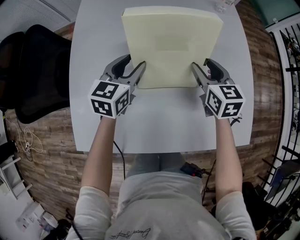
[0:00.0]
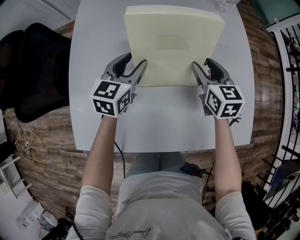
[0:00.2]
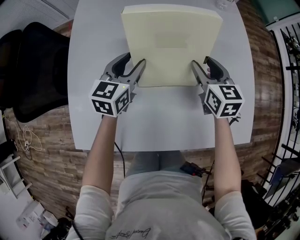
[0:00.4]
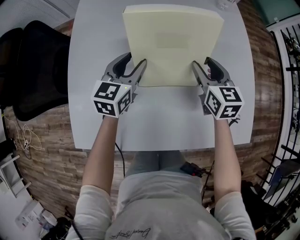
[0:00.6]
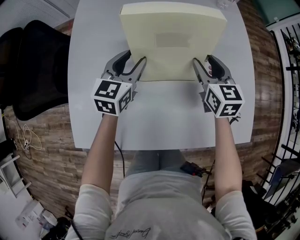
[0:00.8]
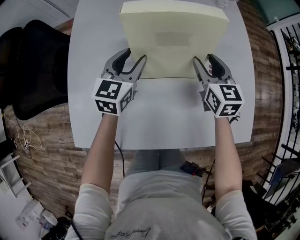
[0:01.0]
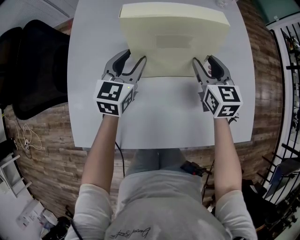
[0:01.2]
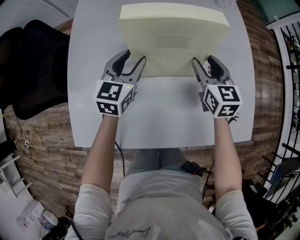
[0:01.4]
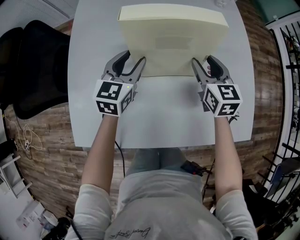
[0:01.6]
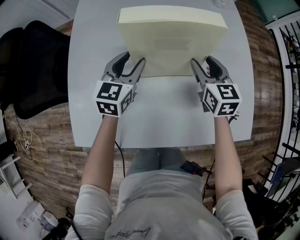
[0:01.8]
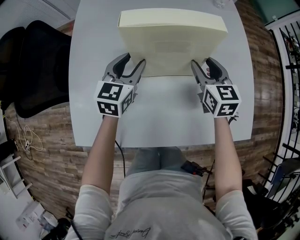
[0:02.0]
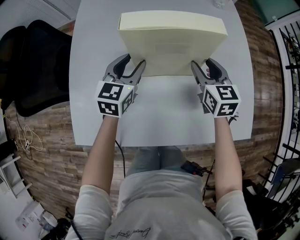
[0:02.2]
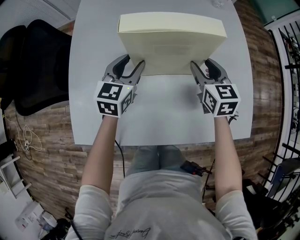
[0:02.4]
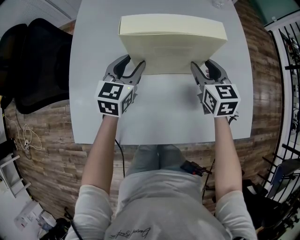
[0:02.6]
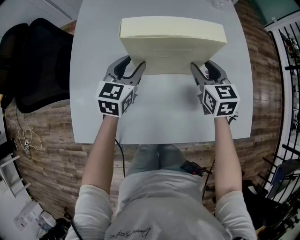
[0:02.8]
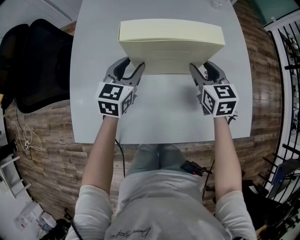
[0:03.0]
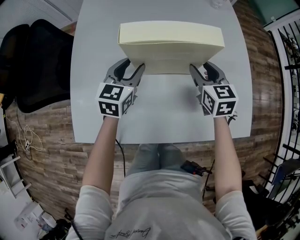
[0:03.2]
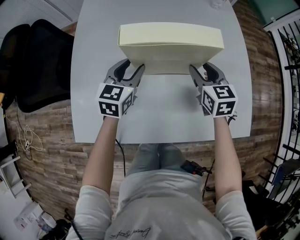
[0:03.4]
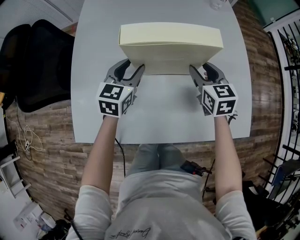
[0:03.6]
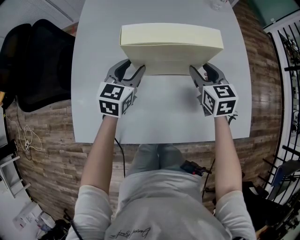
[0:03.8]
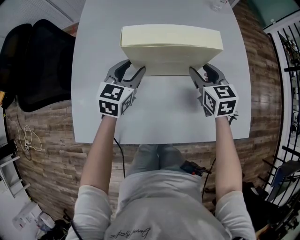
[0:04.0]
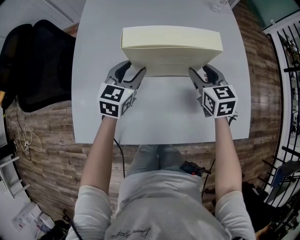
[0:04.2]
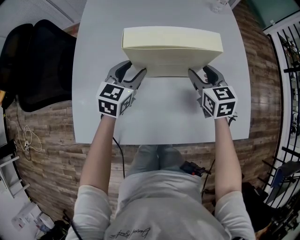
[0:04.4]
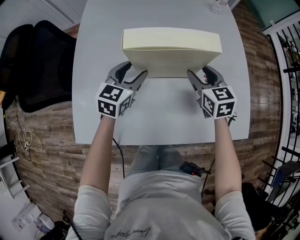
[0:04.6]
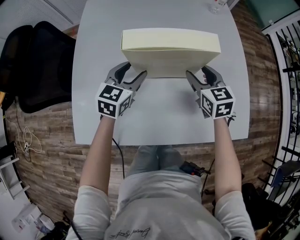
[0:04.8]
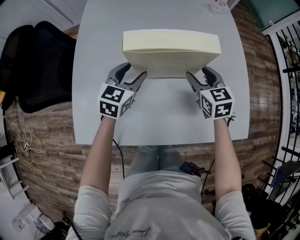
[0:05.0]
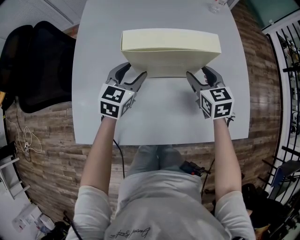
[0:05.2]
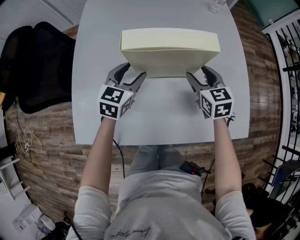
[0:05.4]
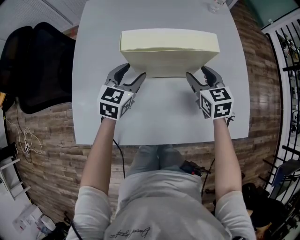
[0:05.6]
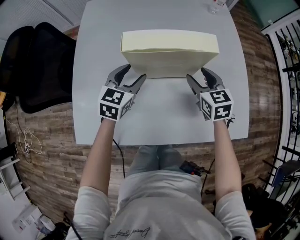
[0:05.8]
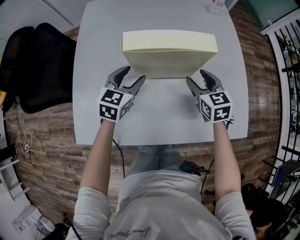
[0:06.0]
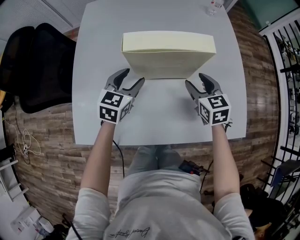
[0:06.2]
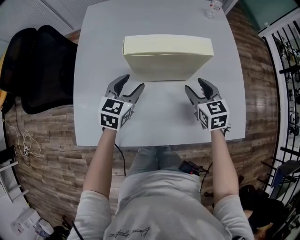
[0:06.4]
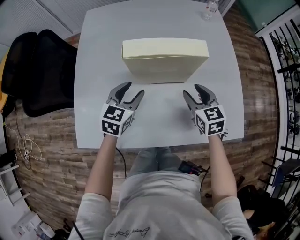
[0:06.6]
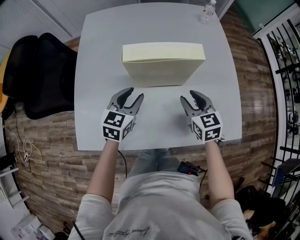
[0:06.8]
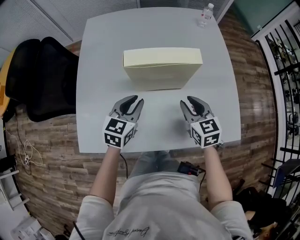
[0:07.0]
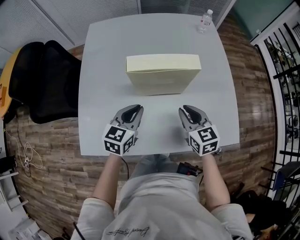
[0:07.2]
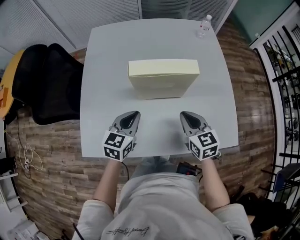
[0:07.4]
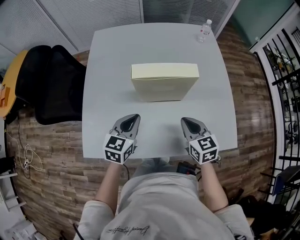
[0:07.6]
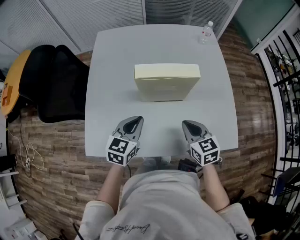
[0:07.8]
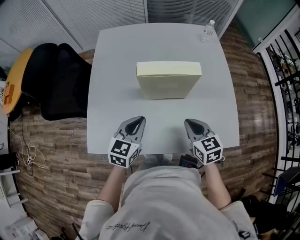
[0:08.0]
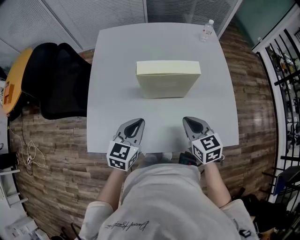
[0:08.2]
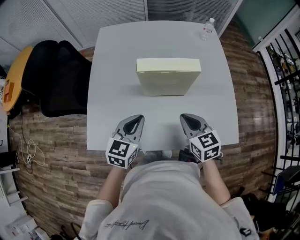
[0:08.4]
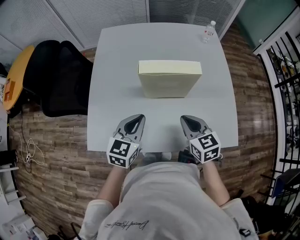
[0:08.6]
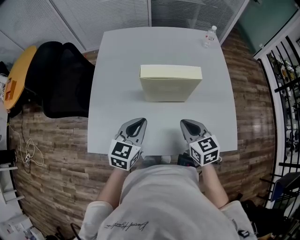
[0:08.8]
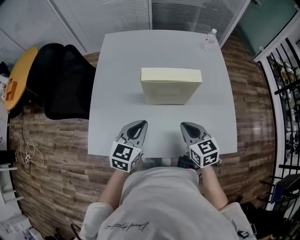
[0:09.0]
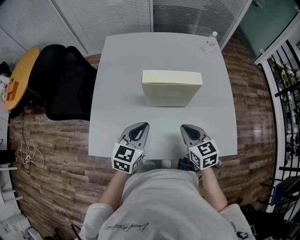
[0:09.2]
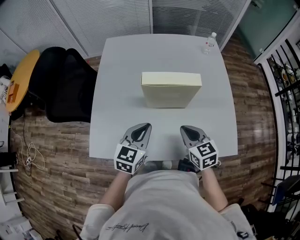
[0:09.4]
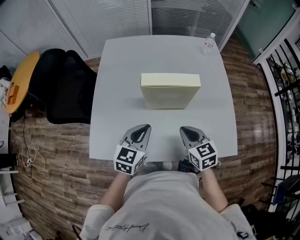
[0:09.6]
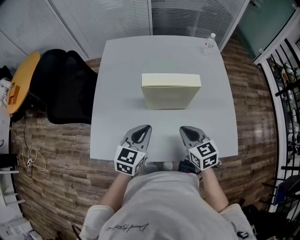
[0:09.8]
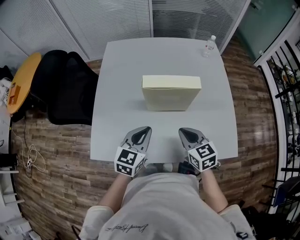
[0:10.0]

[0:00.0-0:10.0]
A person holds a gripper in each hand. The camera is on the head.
0:00.0 to 0:02.8: The grippers move only a little.
0:02.8 to 0:04.2: Both grippers stay about where they are.
0:04.2 to 0:05.8: The grippers make only small movements.
0:05.8 to 0:07.2: The two grippers go roughly 10 cm backward. The right gripper closes up; the left gripper closes.
0:07.2 to 0:08.6: The left gripper travels upward by approximately 5 cm; the right gripper changes place by roughly 5 cm.
0:08.6 to 0:10.0: The grippers make only small movements.

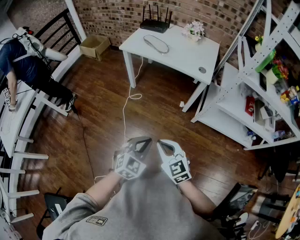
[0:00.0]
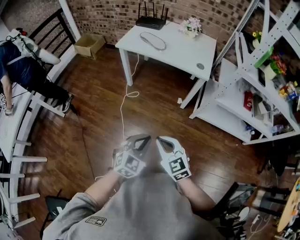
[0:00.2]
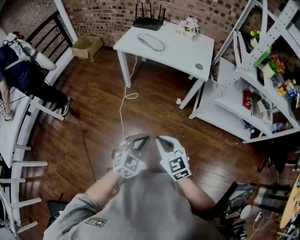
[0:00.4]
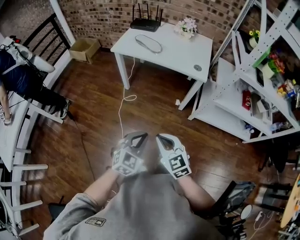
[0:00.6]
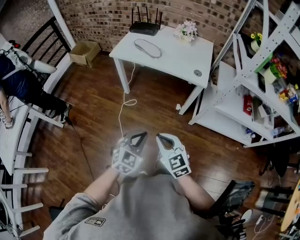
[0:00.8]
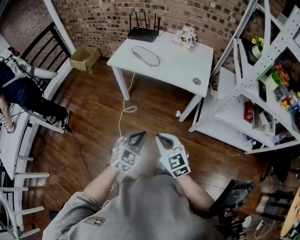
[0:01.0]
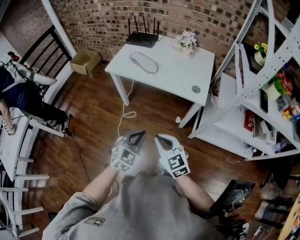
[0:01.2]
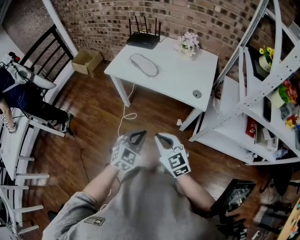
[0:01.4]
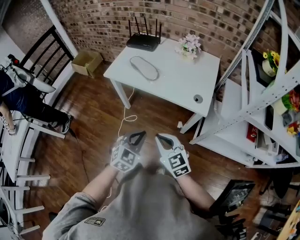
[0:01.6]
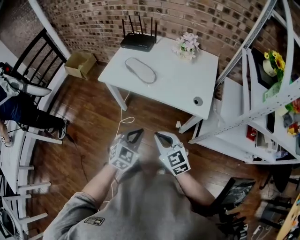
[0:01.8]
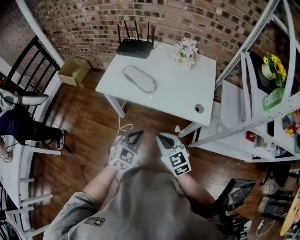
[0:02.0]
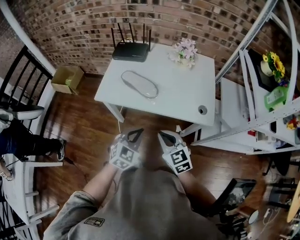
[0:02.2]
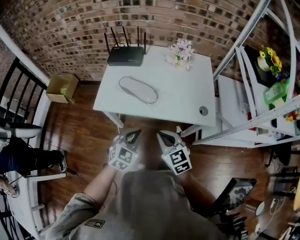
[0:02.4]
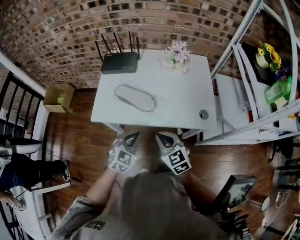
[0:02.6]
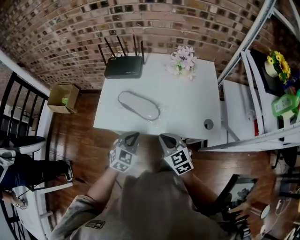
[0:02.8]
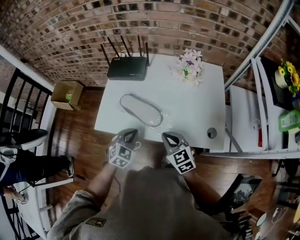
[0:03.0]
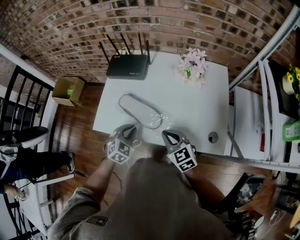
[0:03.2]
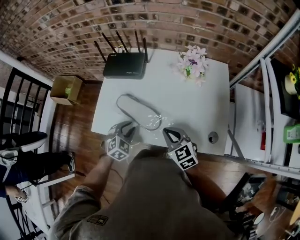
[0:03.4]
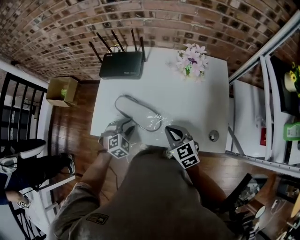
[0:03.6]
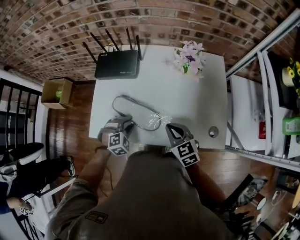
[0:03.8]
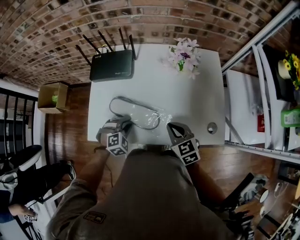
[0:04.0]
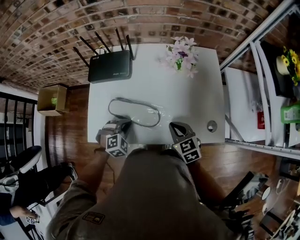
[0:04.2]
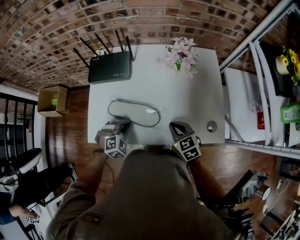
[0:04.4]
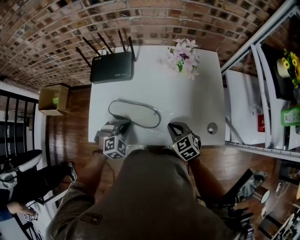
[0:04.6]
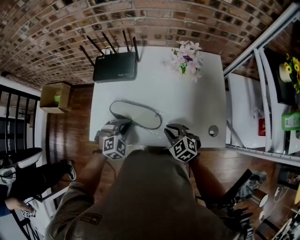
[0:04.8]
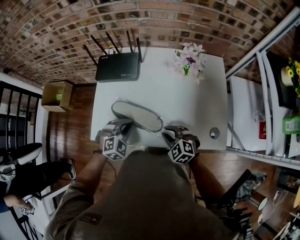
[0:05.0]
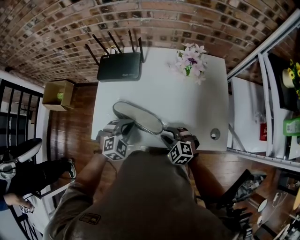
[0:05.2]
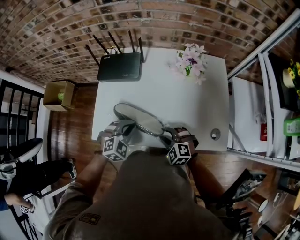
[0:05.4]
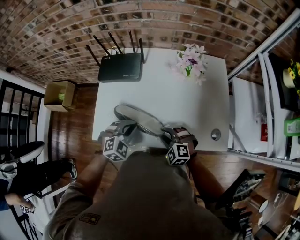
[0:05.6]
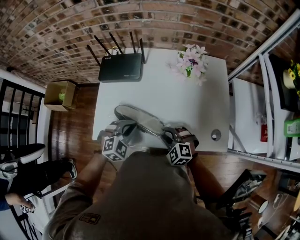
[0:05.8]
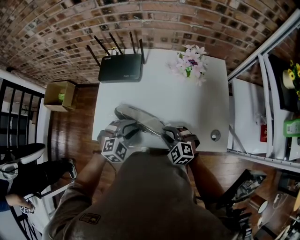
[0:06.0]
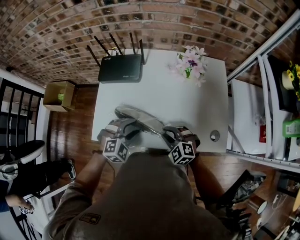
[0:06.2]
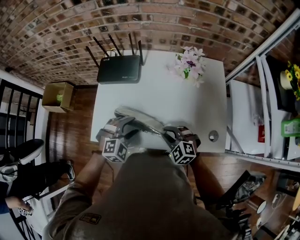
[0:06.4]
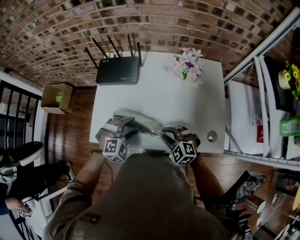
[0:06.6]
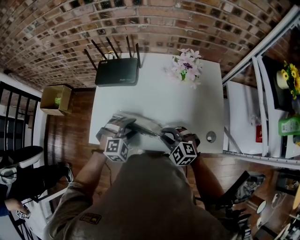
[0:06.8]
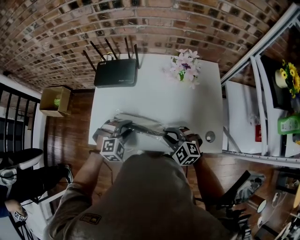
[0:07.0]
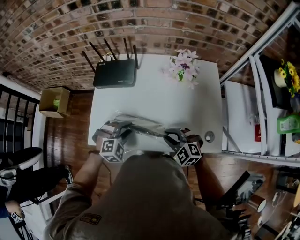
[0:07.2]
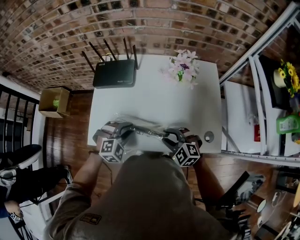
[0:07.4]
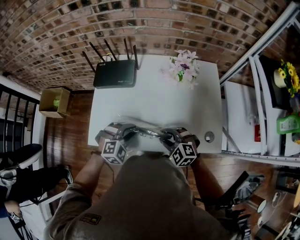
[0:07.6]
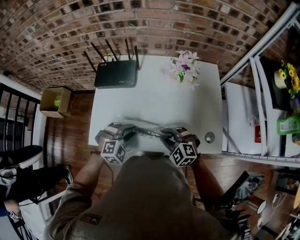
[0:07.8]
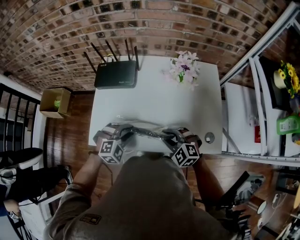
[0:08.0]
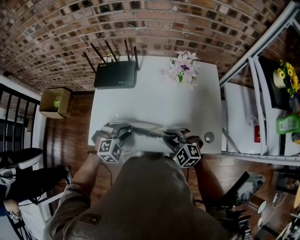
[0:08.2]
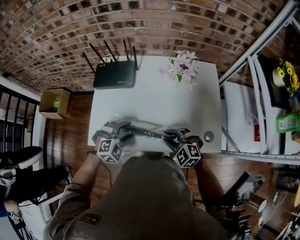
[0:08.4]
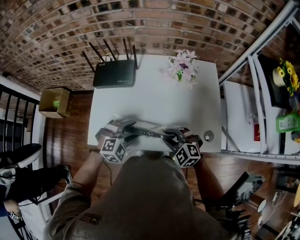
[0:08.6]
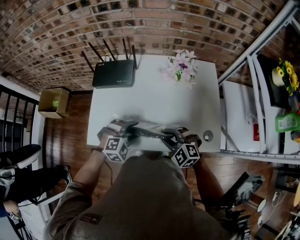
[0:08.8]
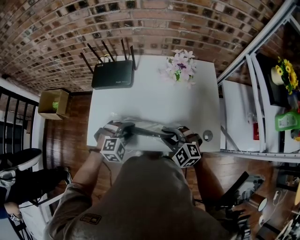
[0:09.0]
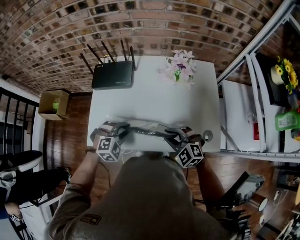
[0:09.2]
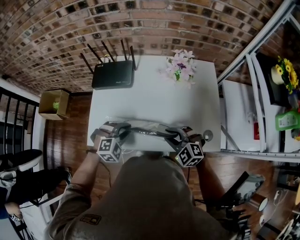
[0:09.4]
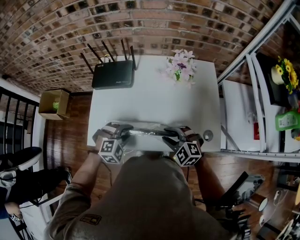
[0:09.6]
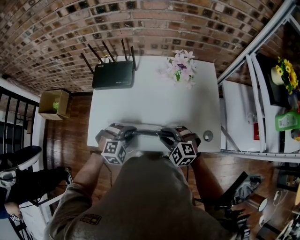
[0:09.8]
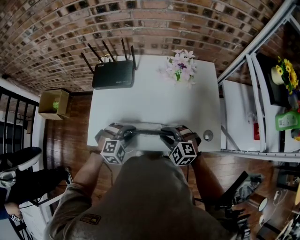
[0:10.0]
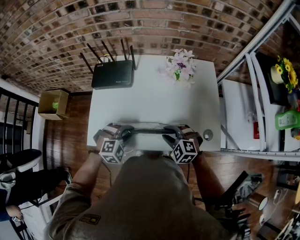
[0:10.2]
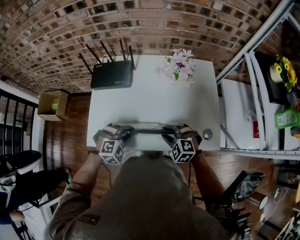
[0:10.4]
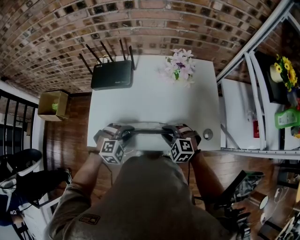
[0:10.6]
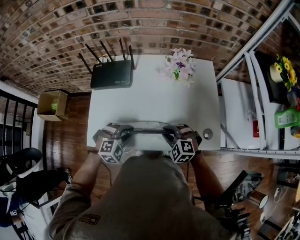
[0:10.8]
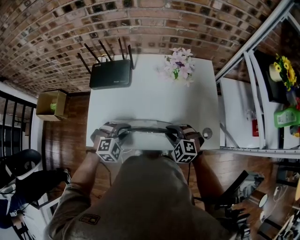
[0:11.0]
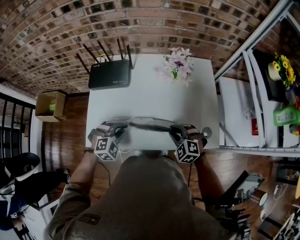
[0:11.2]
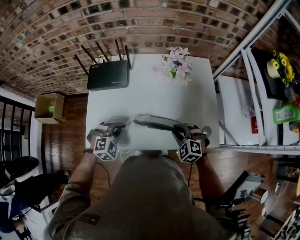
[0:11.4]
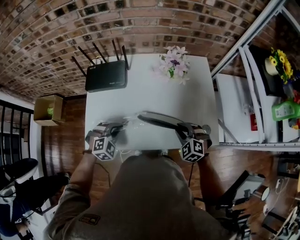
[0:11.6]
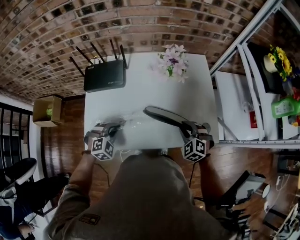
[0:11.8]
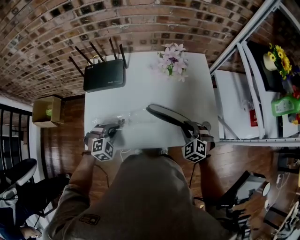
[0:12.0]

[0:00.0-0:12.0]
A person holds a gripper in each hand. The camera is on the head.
0:00.0 to 0:01.6: The grippers both shift forward by about 30 cm.
0:01.6 to 0:03.0: Both grippers move forward, some 35 cm.
0:03.0 to 0:04.4: The left gripper shifts roughly 10 cm forward and downward, turns by approximately 30 degrees, and opens and closes again. Meanwhile the right gripper goes some 10 cm forward, downward and to the right.
0:04.4 to 0:06.0: The left gripper moves upward, roughly 5 cm, and opens. Meanwhile the right gripper heads to the left, covering roughly 5 cm, rolls counterclockwise, seen from behind, by some 40 degrees, and opens its fingers.
0:06.0 to 0:07.6: The left gripper opens, then closes once more.
0:07.6 to 0:09.0: The left gripper opens, then closes again.
0:09.0 to 0:10.4: There are only small adjustments of the grippers.
0:10.4 to 0:12.0: The right gripper moves to the right, approximately 10 cm, and changes its angle by roughly 30 degrees, while the left gripper is displaced to the left by roughly 5 cm.

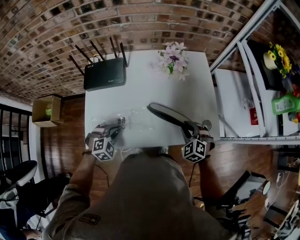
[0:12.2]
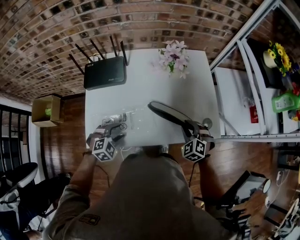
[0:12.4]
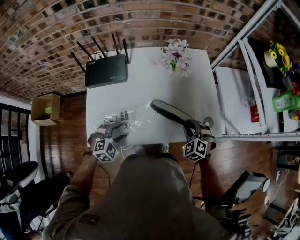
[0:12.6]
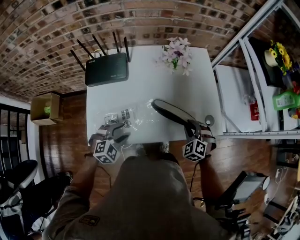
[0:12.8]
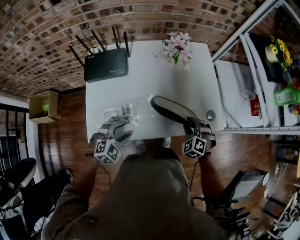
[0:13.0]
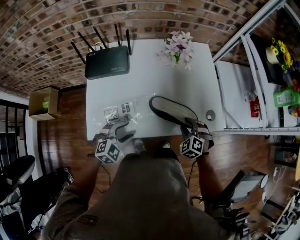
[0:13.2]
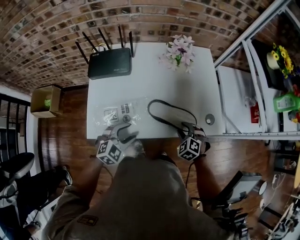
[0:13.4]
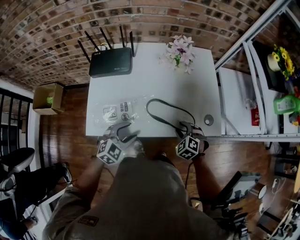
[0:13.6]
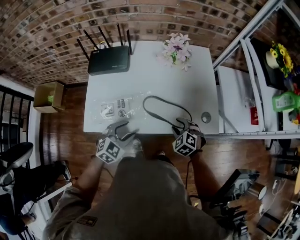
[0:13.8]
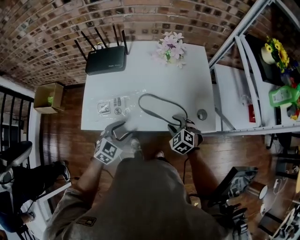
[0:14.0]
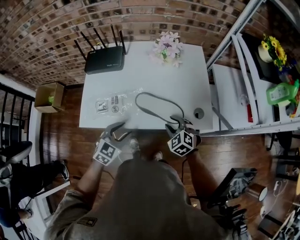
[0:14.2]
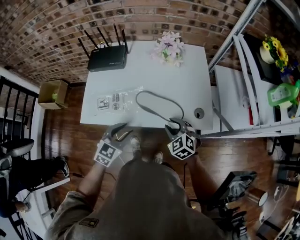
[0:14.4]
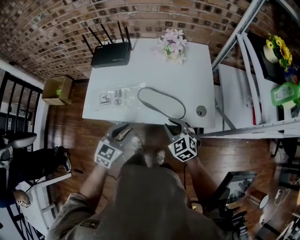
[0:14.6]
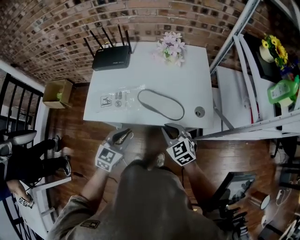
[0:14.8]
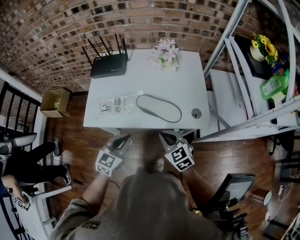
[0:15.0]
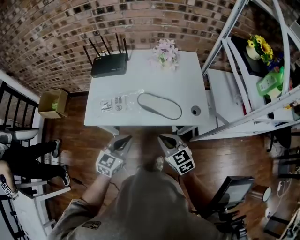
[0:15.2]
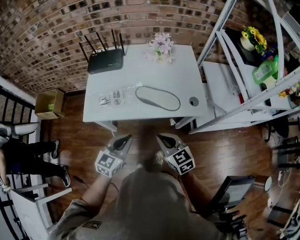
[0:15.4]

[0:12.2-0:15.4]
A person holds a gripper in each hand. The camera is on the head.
0:12.2 to 0:13.8: The right gripper shifts approximately 5 cm backward, while the left gripper is displaced to the right by roughly 10 cm, swivels approximately 30 degrees, and opens.
0:13.8 to 0:15.4: Both grippers move backward and upward, about 20 cm. The right gripper tilts its fingers some 30 degrees upward, and closes up, while the left gripper swivels roughly 30 degrees, and closes up.
